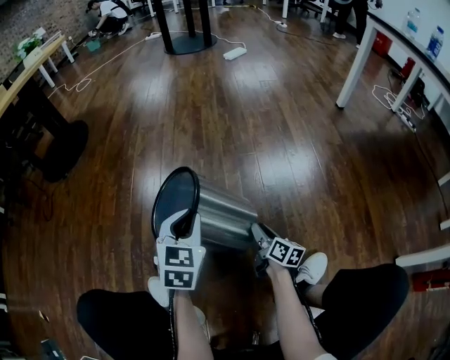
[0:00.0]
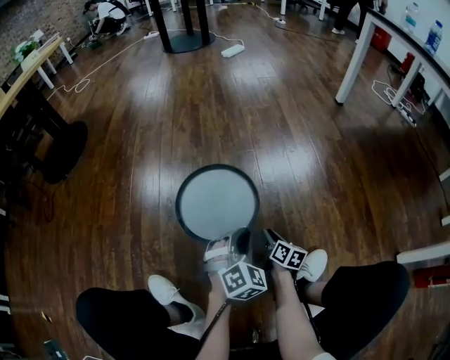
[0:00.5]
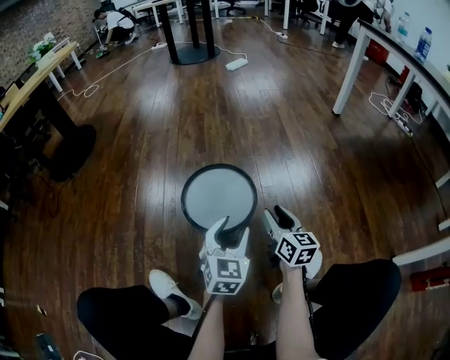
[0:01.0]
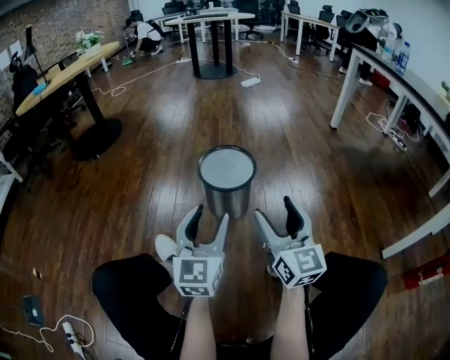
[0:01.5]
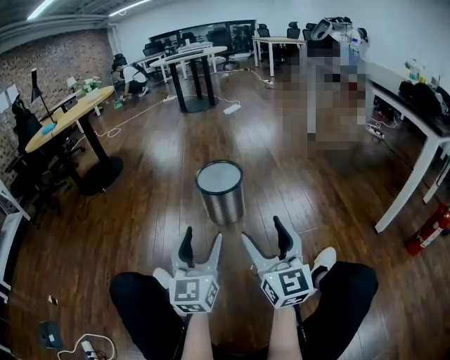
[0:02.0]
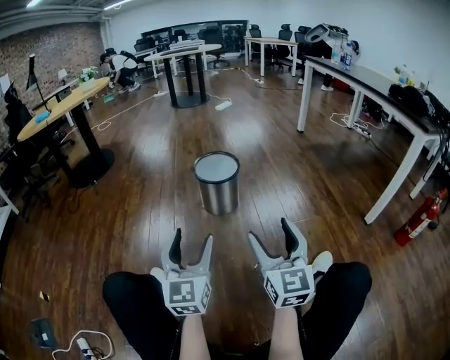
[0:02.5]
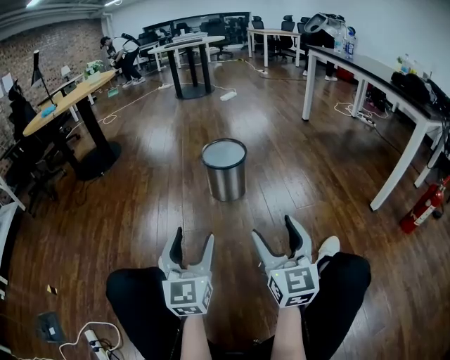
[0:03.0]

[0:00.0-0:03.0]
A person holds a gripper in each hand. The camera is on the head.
0:00.0 to 0:01.5: The left gripper is displaced backward and upward by about 30 cm, tilts its fingers about 30 degrees upward, and opens, while the right gripper shifts about 40 cm upward and backward, twists some 50 degrees counterclockwise, seen from behind, and opens up.
0:01.5 to 0:03.0: The grippers both shift backward by approximately 25 cm.

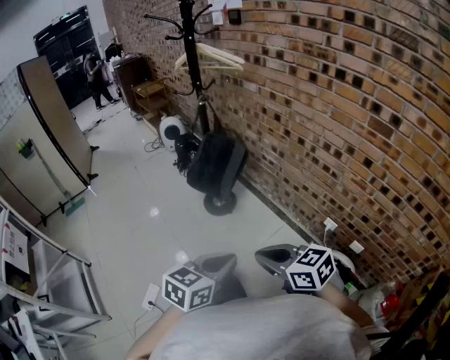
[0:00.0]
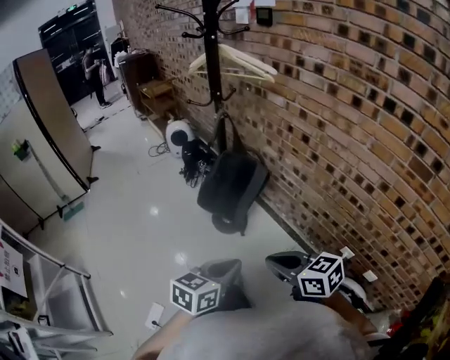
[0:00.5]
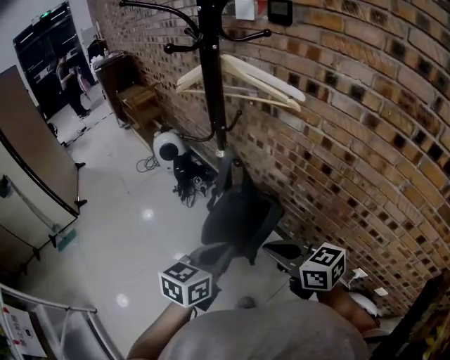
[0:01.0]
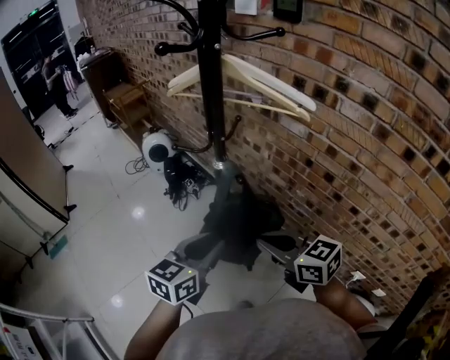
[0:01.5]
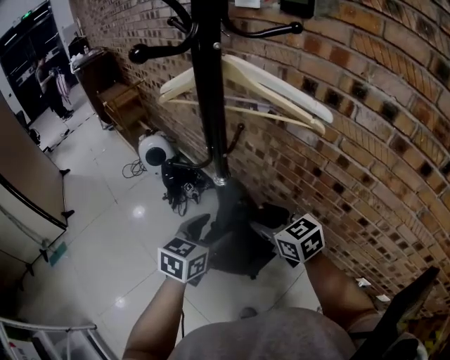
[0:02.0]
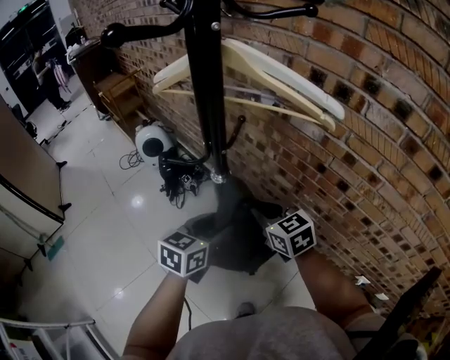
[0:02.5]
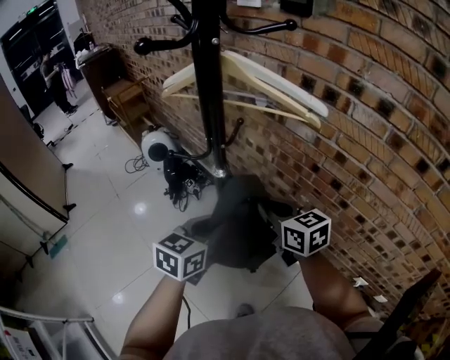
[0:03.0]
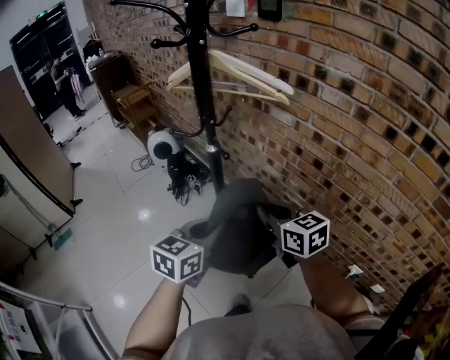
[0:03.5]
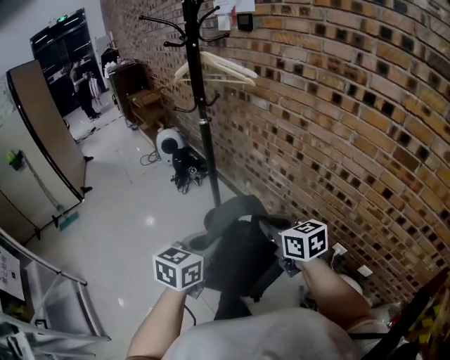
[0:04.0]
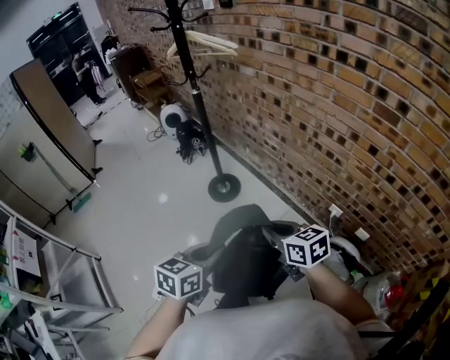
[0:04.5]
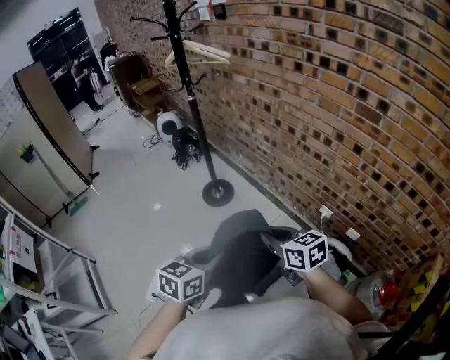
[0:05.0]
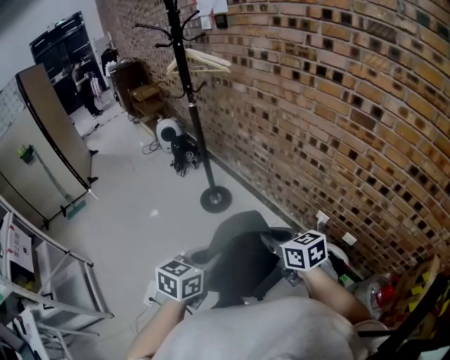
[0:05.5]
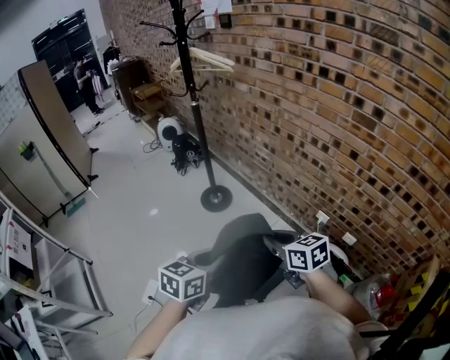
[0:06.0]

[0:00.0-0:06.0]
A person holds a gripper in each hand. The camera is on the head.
0:00.0 to 0:02.0: The two grippers travel together, forward, about 60 cm. The left gripper opens. The right gripper changes its angle by about 20 degrees, and opens its fingers.
0:02.0 to 0:04.0: The left gripper heads backward, covering some 40 cm, and closes its fingers. Meanwhile the right gripper shifts some 40 cm backward and to the right, and closes up.
0:04.0 to 0:06.0: Both grippers move backward, roughly 25 cm.

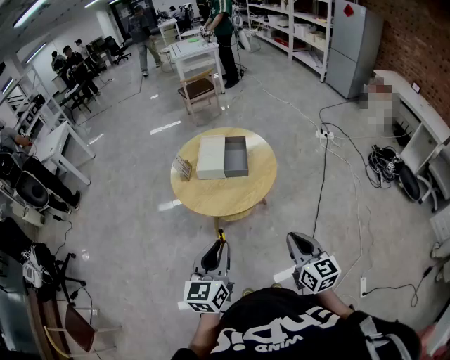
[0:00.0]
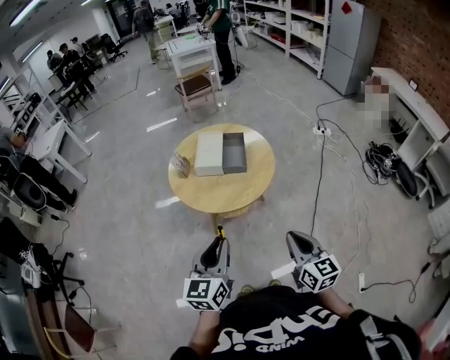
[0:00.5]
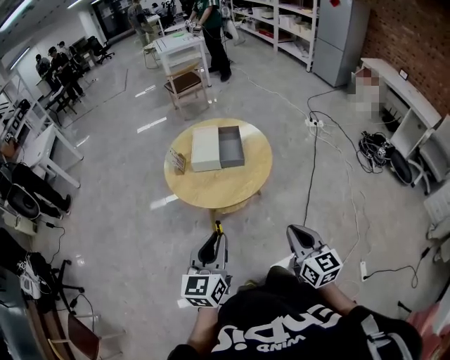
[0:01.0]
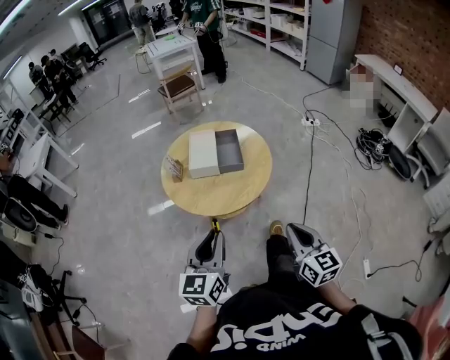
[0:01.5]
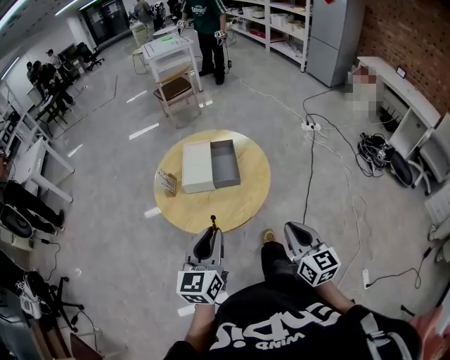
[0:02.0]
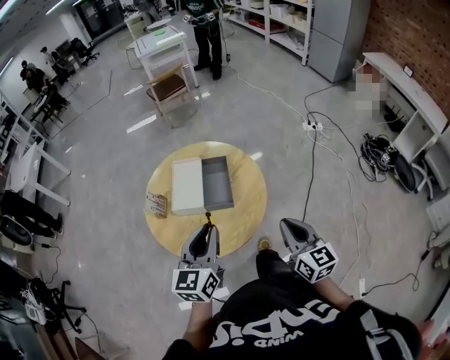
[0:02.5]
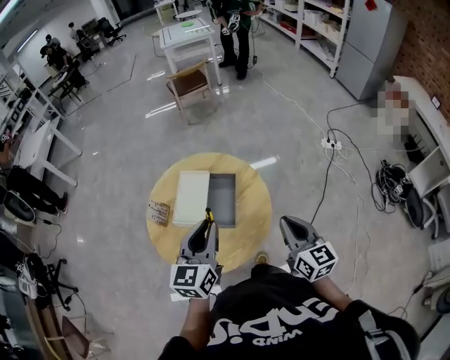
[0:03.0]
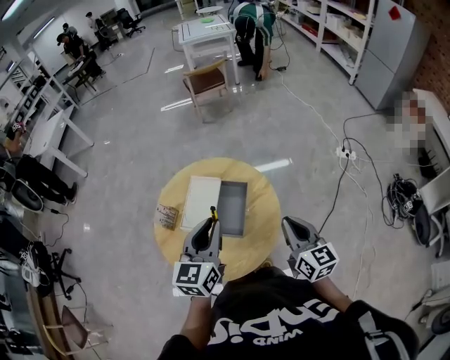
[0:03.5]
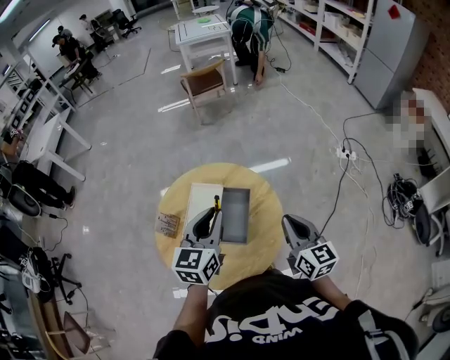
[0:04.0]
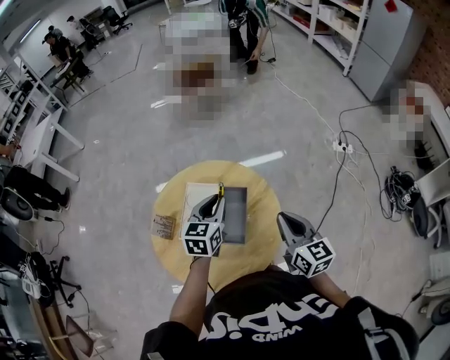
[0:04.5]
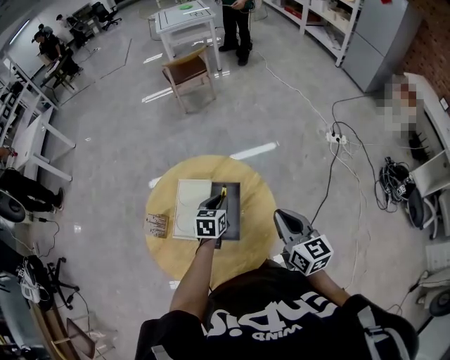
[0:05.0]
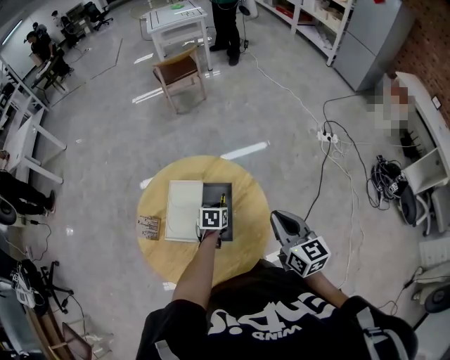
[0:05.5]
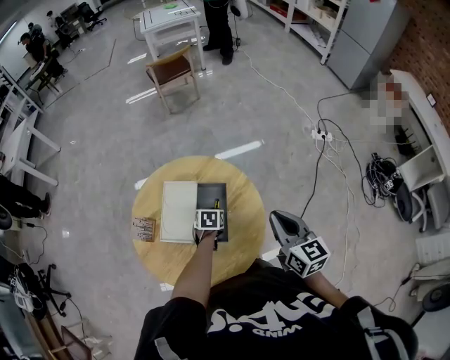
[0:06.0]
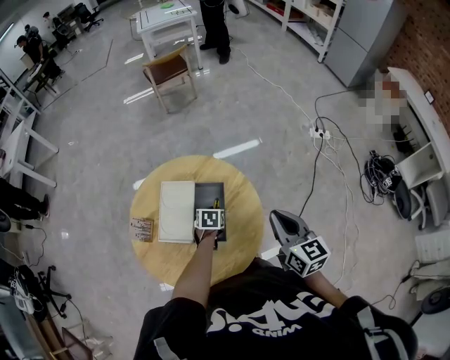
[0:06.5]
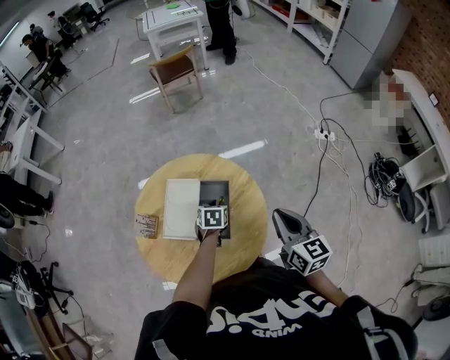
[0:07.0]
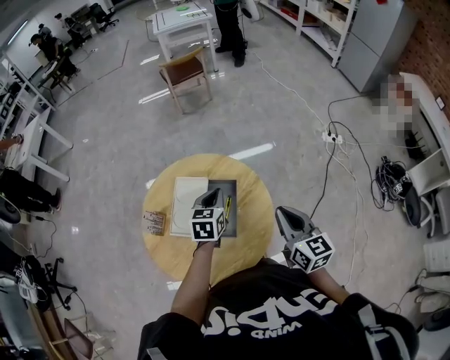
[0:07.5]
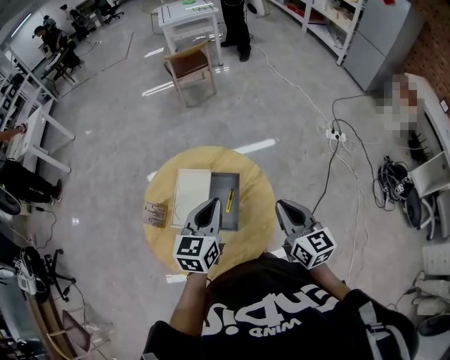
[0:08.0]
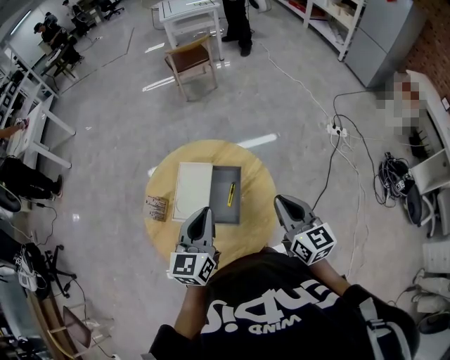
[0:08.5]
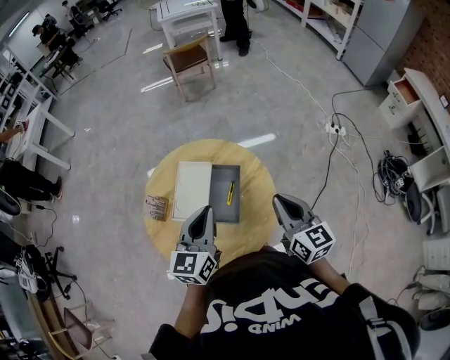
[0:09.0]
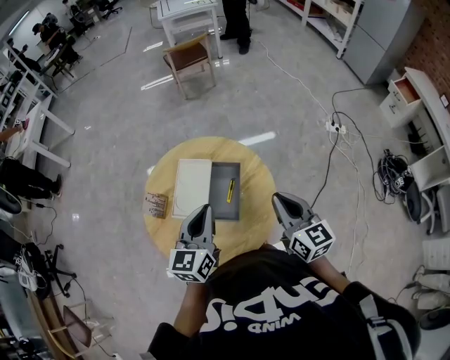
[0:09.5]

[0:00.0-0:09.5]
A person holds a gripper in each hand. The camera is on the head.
0:00.0 to 0:02.0: The two grippers go about 10 cm forward.
0:02.0 to 0:04.0: The two grippers go some 35 cm forward.
0:04.0 to 0:05.5: The left gripper travels downward by about 30 cm, and tilts its fingers approximately 40 degrees downward.
0:05.5 to 0:07.5: The left gripper travels upward by roughly 15 cm, and rotates approximately 20 degrees.
0:07.5 to 0:09.5: The left gripper is displaced backward and upward by some 15 cm, and turns by about 20 degrees.

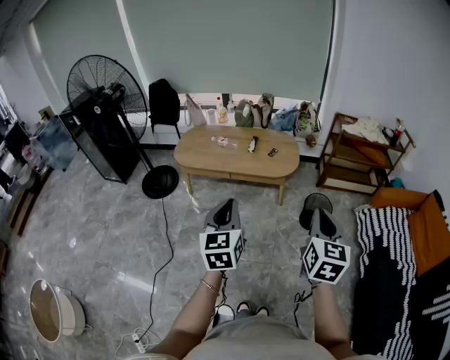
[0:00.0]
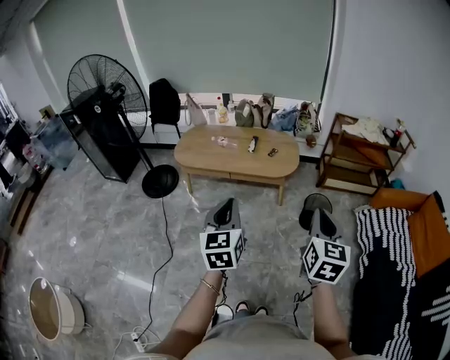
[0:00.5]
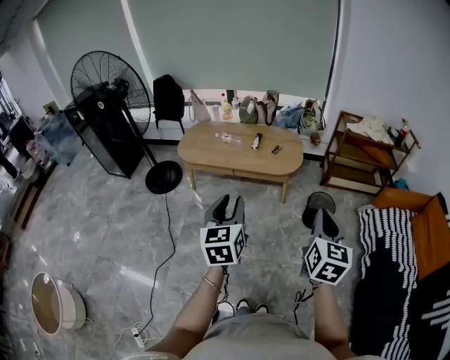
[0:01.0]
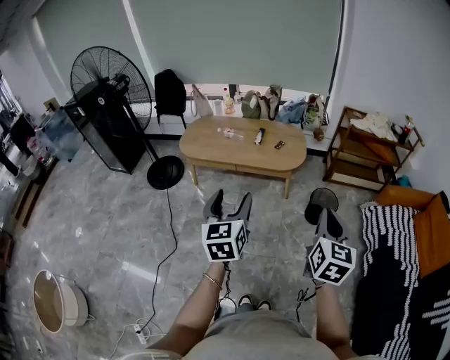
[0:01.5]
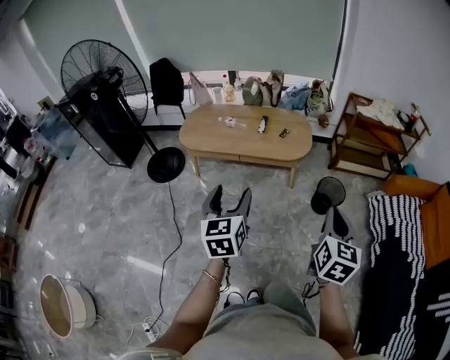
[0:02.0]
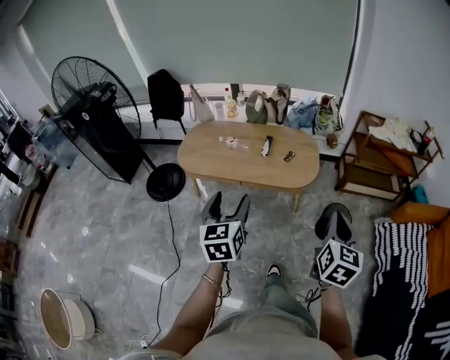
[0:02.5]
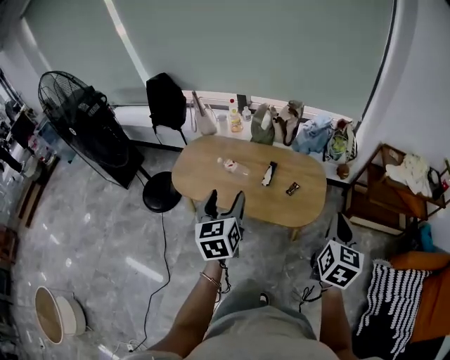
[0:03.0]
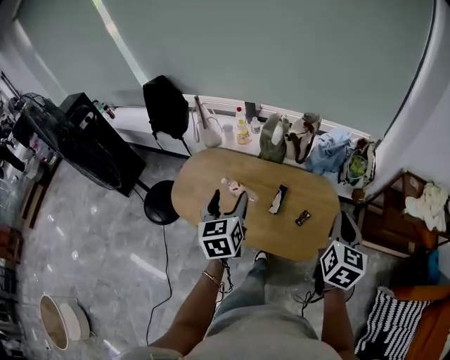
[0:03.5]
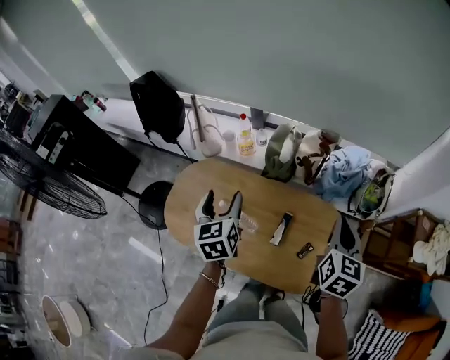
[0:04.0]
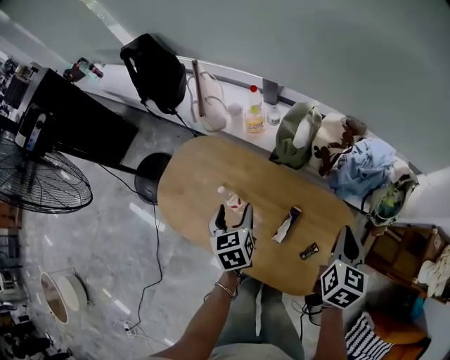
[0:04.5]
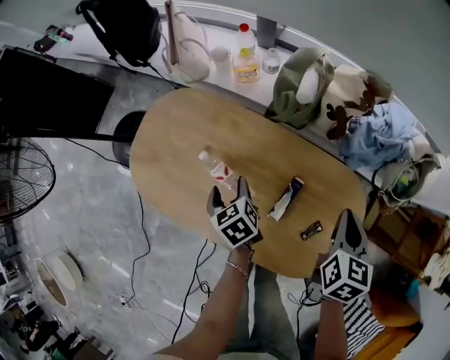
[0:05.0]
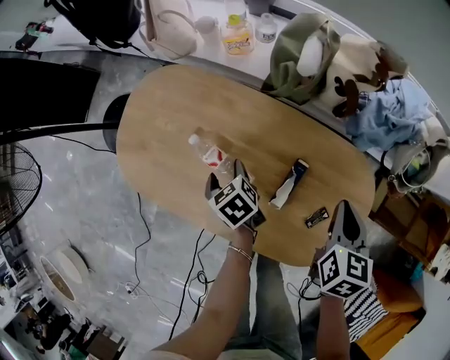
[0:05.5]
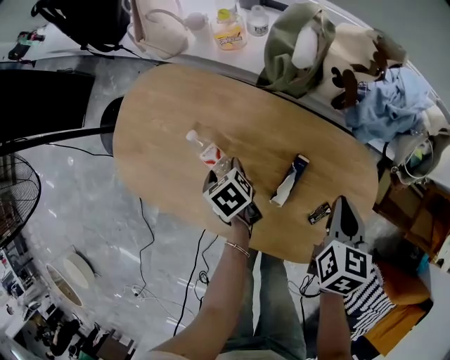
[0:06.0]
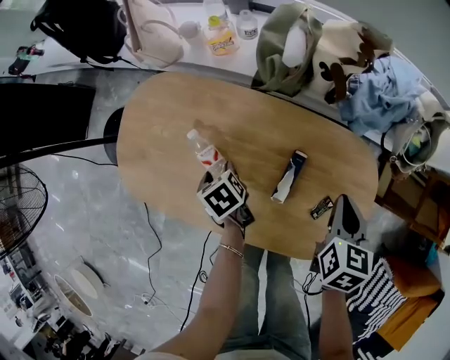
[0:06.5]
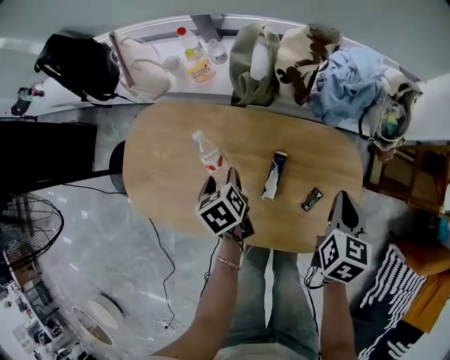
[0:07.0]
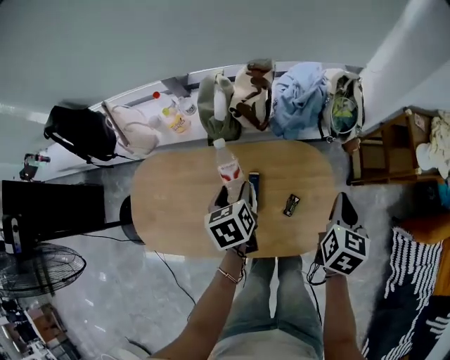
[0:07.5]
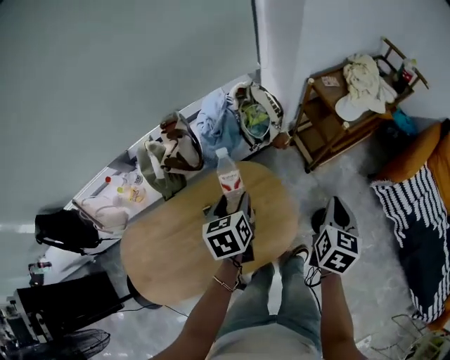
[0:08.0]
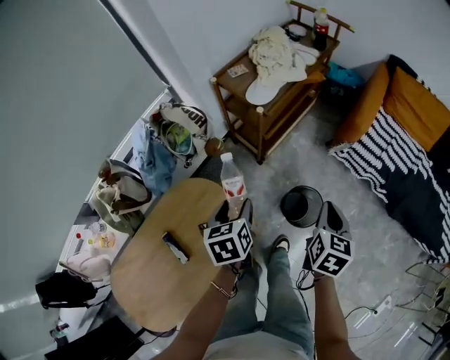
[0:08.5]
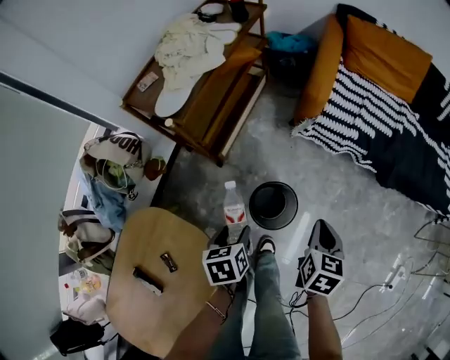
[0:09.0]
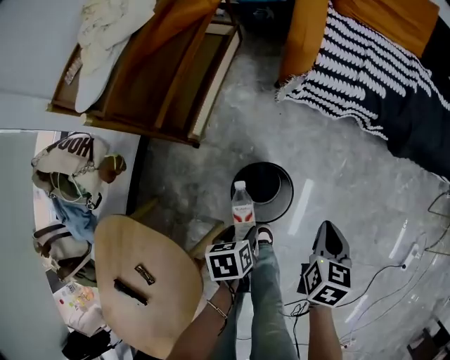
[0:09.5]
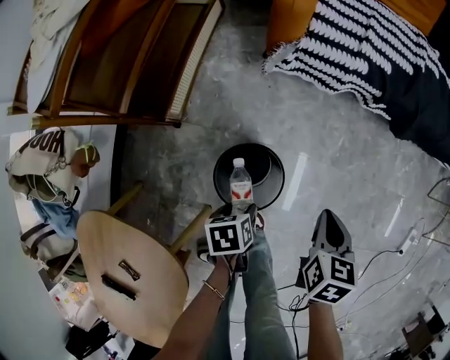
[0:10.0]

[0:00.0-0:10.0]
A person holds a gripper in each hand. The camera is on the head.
0:00.0 to 0:02.0: The right gripper ends up about 5 cm from where it was; the left gripper moves roughly 5 cm, and opens its fingers.
0:02.0 to 0:04.0: The two grippers travel together, forward, some 80 cm. The left gripper changes its angle by roughly 20 degrees.
0:04.0 to 0:06.0: Both grippers travel together downward, approximately 35 cm. The right gripper changes its angle by approximately 30 degrees. Meanwhile the left gripper points its fingers about 40 degrees further downward.
0:06.0 to 0:08.0: The right gripper changes place by about 40 cm, and rotates some 60 degrees. The left gripper shifts by roughly 50 cm, and changes its angle by approximately 80 degrees.
0:08.0 to 0:10.0: Both grippers are carried approximately 50 cm. The right gripper changes its angle by approximately 50 degrees, while the left gripper rotates roughly 60 degrees.
